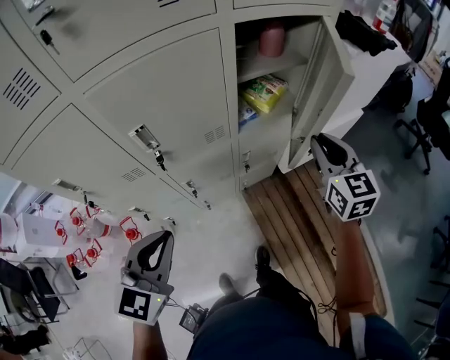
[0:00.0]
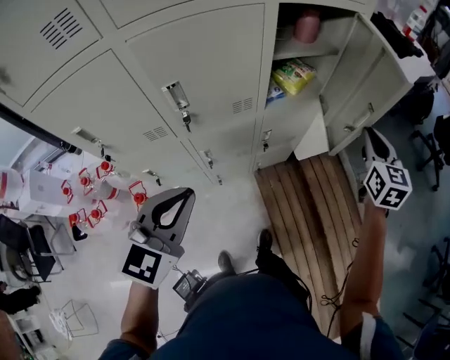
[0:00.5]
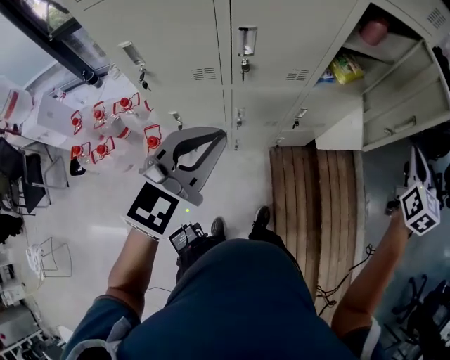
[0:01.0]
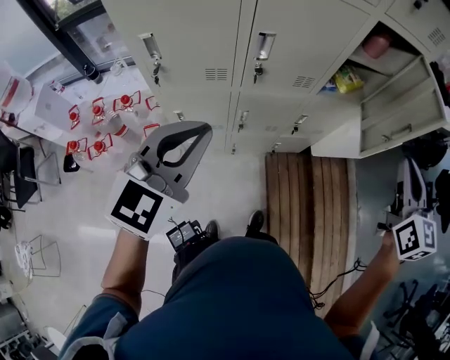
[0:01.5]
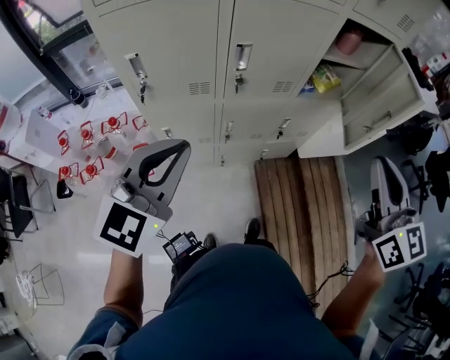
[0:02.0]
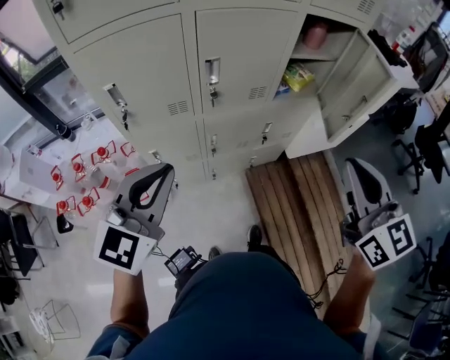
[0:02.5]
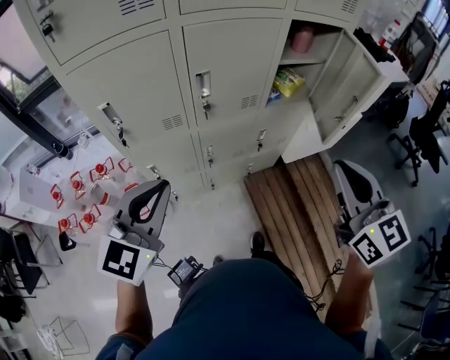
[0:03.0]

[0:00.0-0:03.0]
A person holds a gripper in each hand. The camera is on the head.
0:00.0 to 0:01.5: The right gripper is displaced backward and upward by about 20 cm. Meanwhile the left gripper heads to the left, backward and upward, covering approximately 15 cm.
0:01.5 to 0:03.0: The right gripper heads backward and to the left, covering about 15 cm.

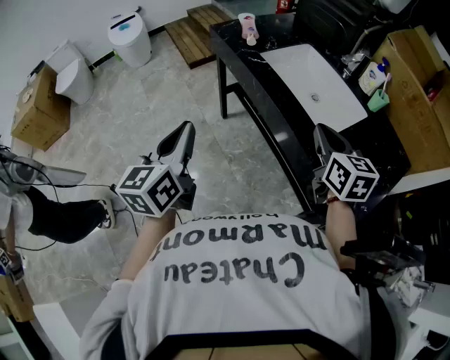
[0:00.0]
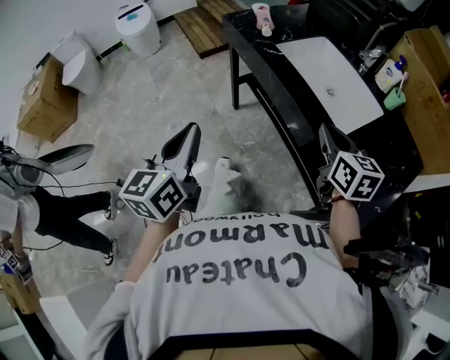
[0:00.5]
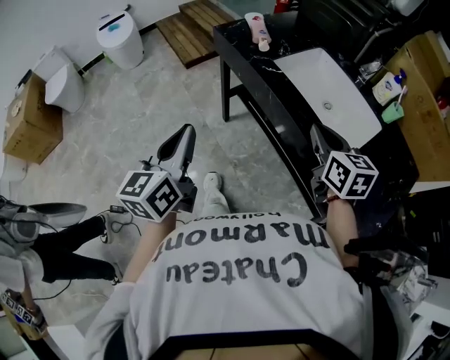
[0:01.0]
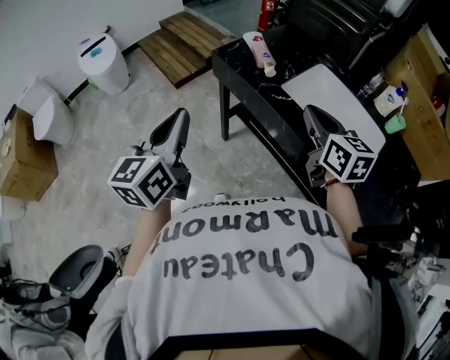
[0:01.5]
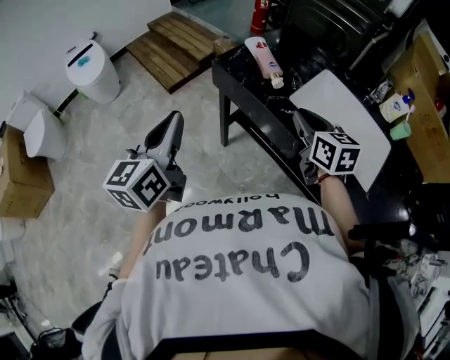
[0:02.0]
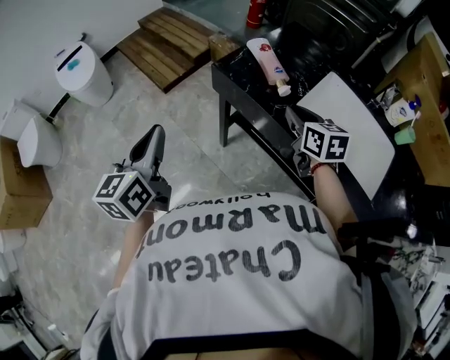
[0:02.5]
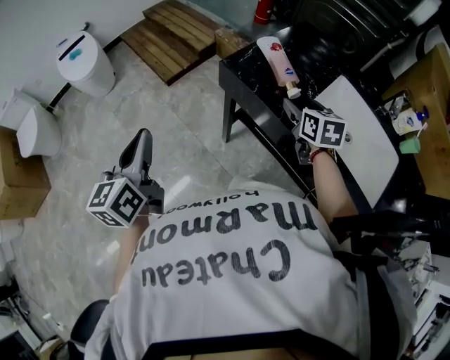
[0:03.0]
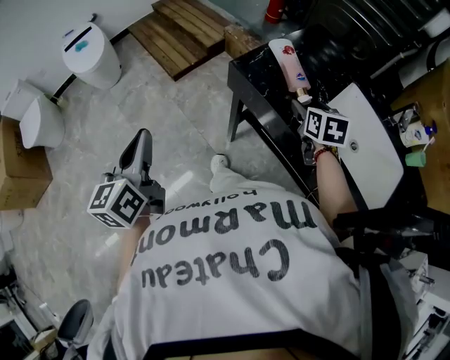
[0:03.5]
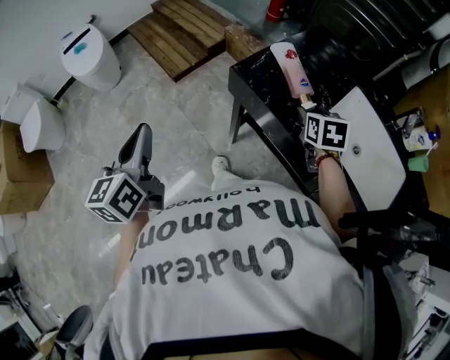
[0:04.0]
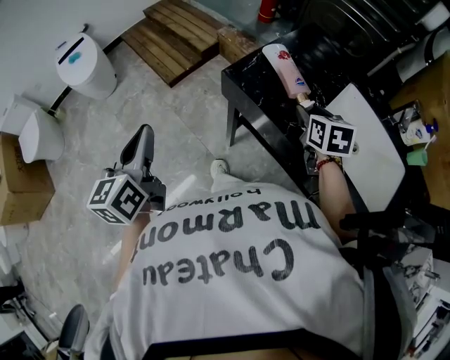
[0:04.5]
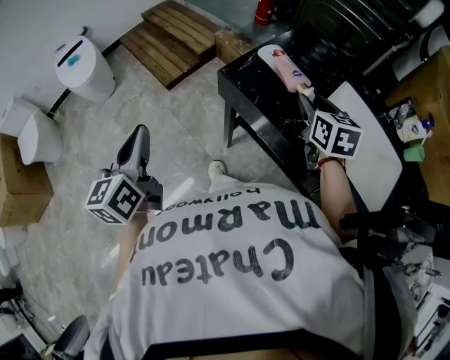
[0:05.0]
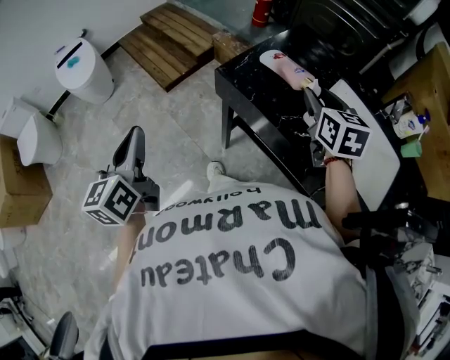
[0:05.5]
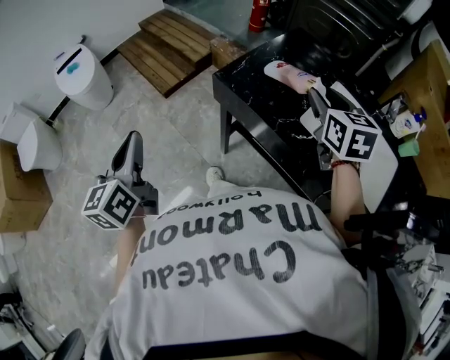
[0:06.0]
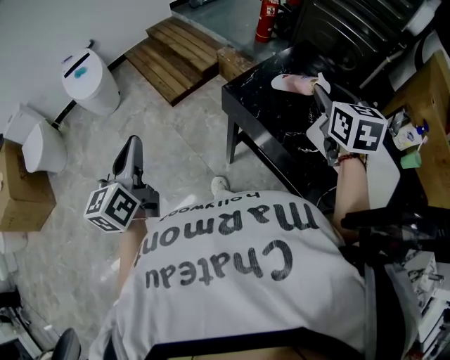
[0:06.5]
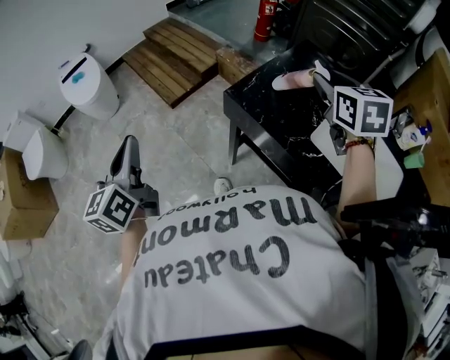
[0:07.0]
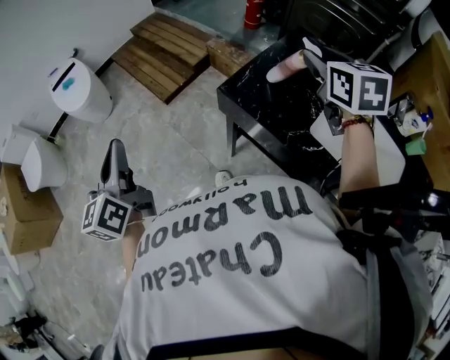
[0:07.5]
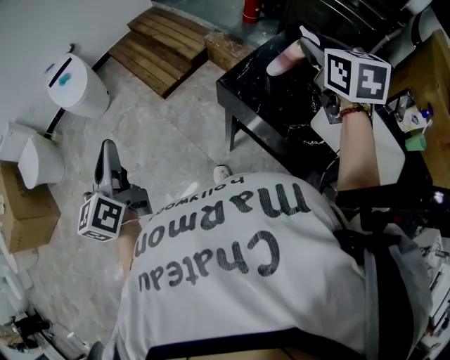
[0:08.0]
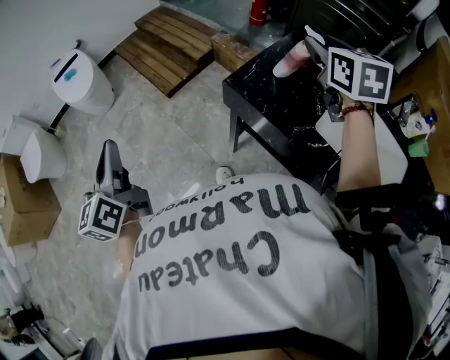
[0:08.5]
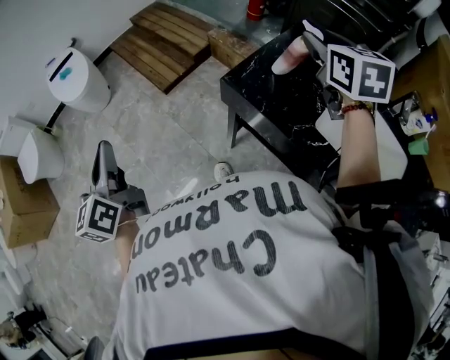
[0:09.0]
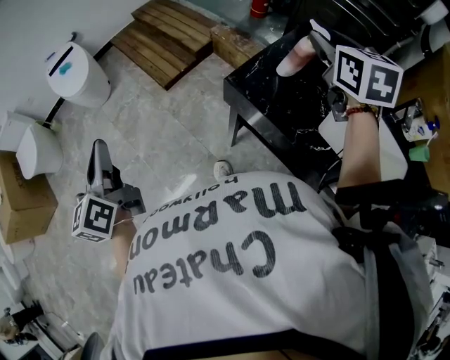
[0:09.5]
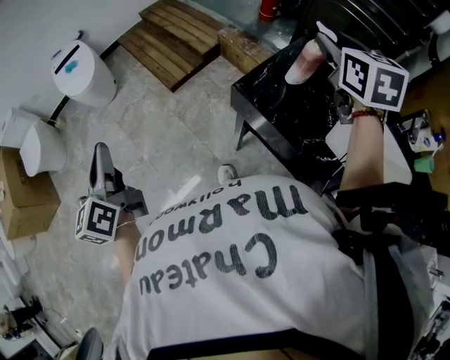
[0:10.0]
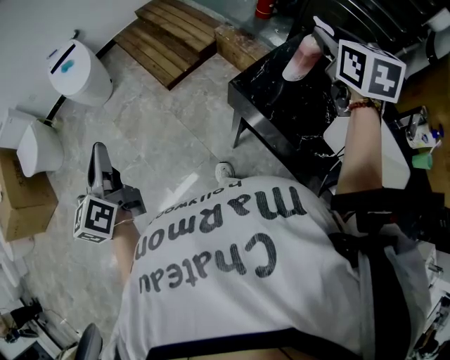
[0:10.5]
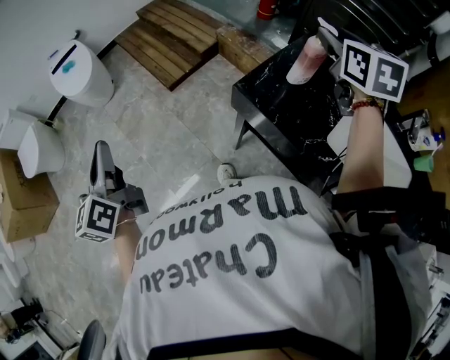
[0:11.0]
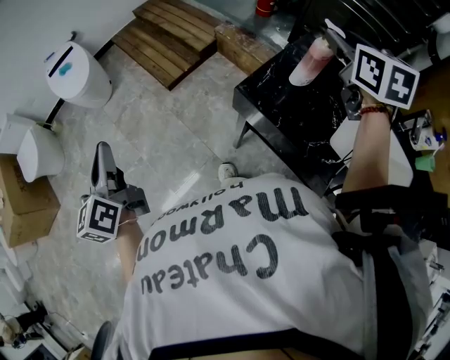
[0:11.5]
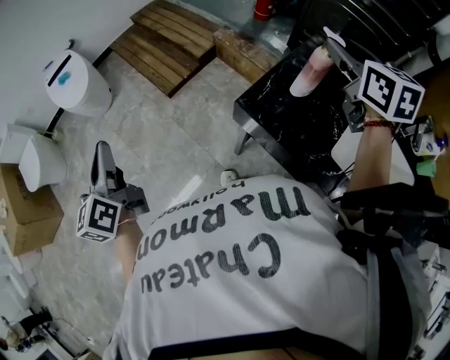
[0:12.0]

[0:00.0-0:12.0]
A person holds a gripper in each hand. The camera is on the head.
0:00.0 to 0:02.0: The grippers both shift forward and to the left by about 35 cm.
0:02.0 to 0:04.0: The left gripper travels to the left, forward and downward by approximately 15 cm, while the right gripper moves forward and downward, roughly 20 cm, swivels about 30 degrees, and opens its fingers.
0:04.0 to 0:06.0: The right gripper goes approximately 15 cm upward, and rotates about 20 degrees.
0:06.0 to 0:08.0: The left gripper heads to the left and forward, covering roughly 10 cm, while the right gripper shifts some 15 cm forward and upward.
0:08.0 to 0:10.0: The grippers stay close to where they were, moving slightly.
0:10.0 to 0:12.0: The left gripper goes approximately 10 cm forward.

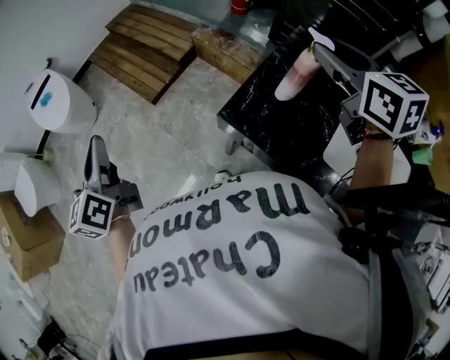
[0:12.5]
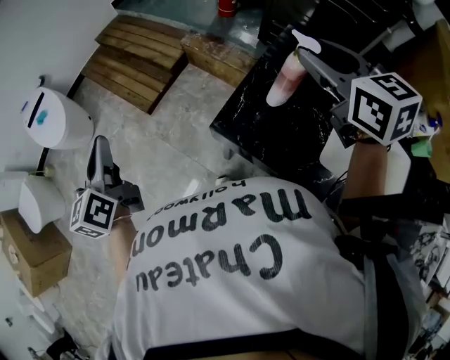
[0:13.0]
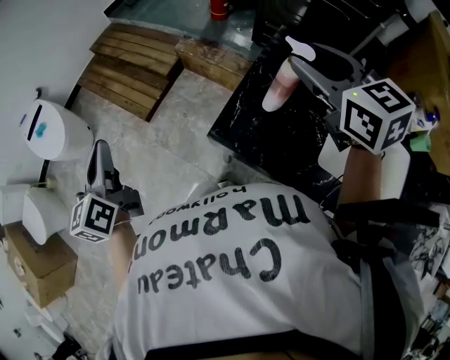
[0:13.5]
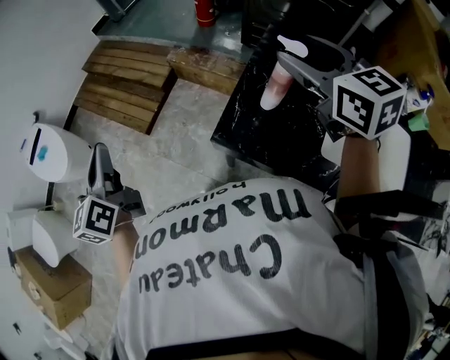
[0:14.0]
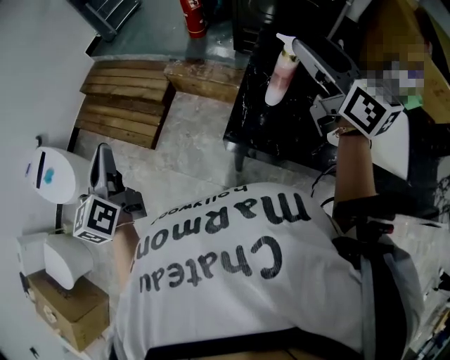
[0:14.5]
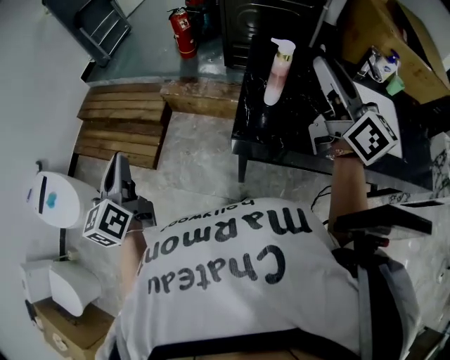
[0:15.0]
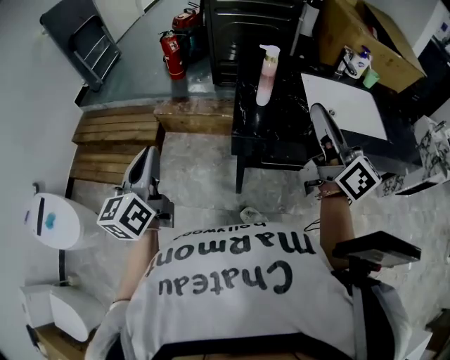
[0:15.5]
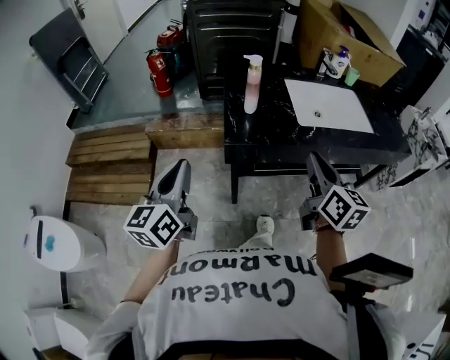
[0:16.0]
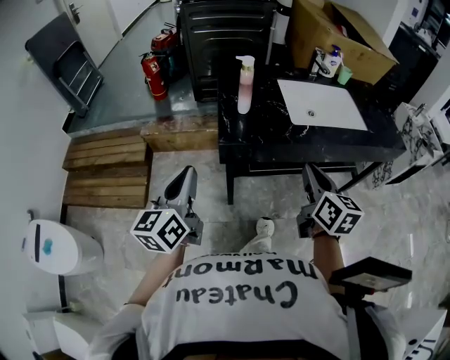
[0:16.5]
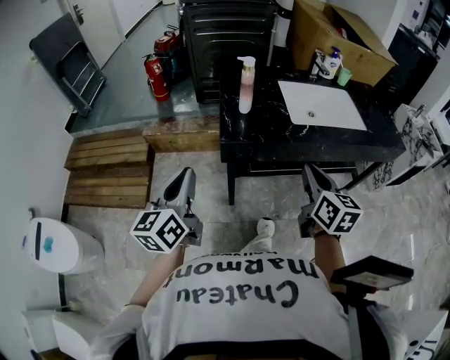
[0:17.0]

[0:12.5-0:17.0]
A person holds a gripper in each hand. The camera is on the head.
0:12.5 to 0:14.5: The right gripper swivels some 30 degrees, and opens its fingers; the left gripper travels forward by roughly 10 cm, and changes its angle by roughly 20 degrees.
0:14.5 to 0:17.0: The left gripper moves approximately 15 cm, and changes its angle by roughly 40 degrees, while the right gripper moves roughly 35 cm, rotates some 50 degrees, and closes.

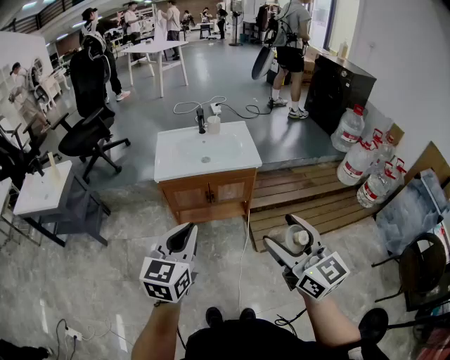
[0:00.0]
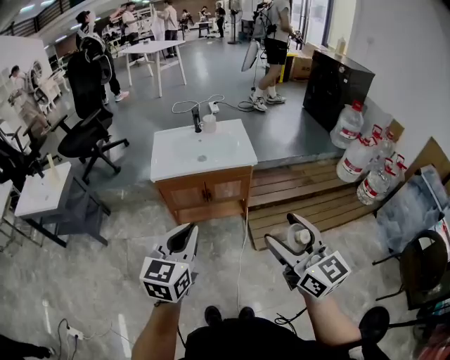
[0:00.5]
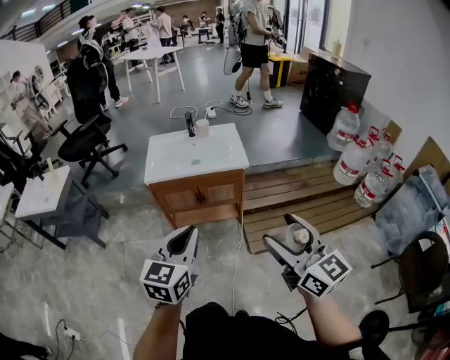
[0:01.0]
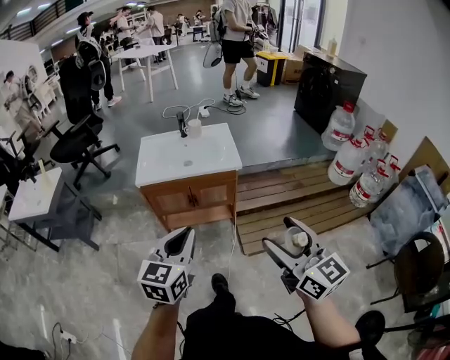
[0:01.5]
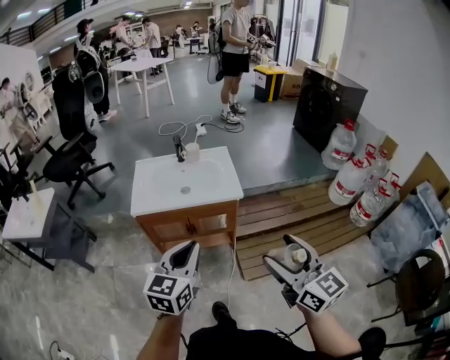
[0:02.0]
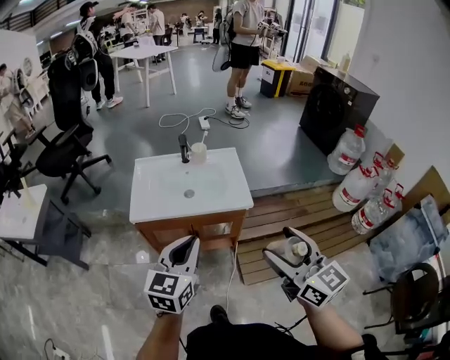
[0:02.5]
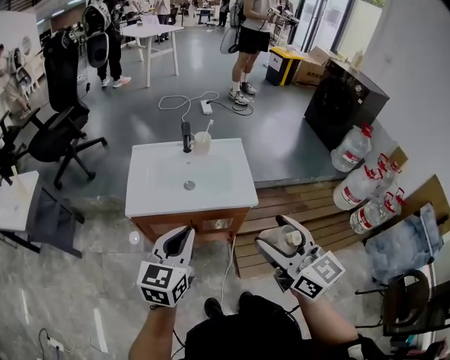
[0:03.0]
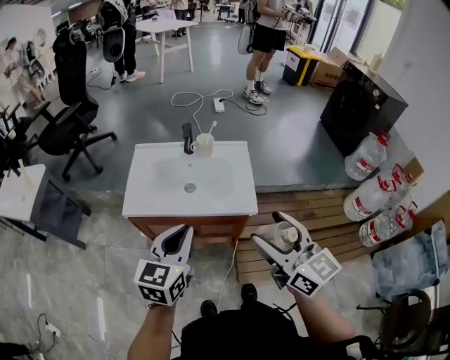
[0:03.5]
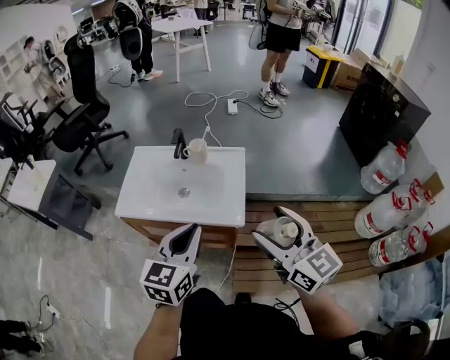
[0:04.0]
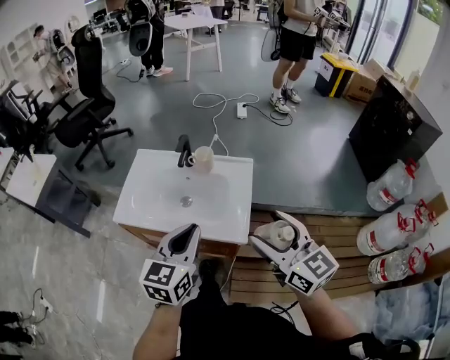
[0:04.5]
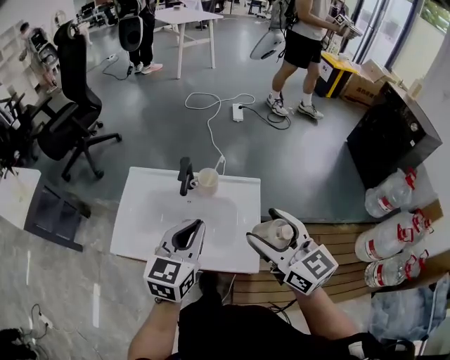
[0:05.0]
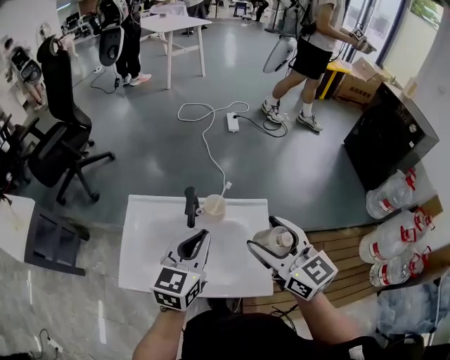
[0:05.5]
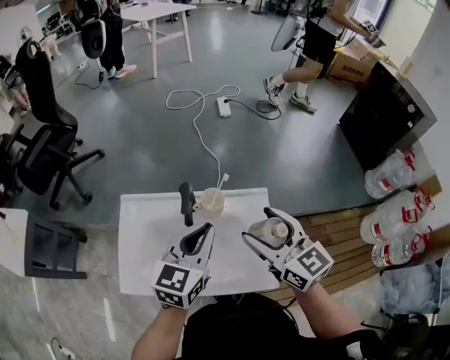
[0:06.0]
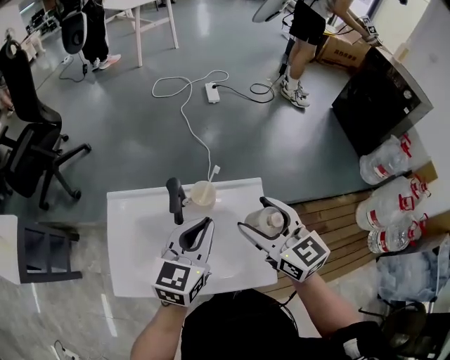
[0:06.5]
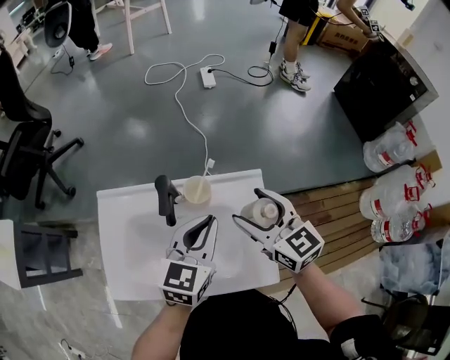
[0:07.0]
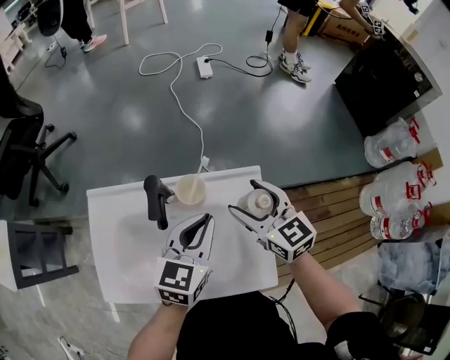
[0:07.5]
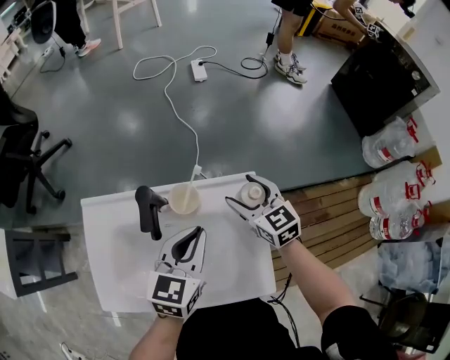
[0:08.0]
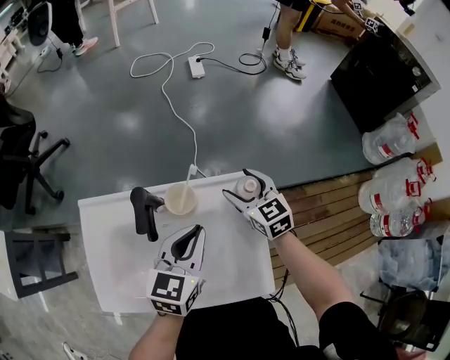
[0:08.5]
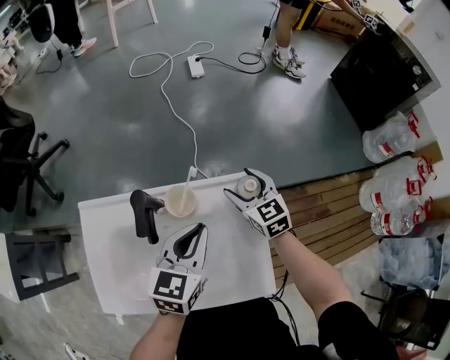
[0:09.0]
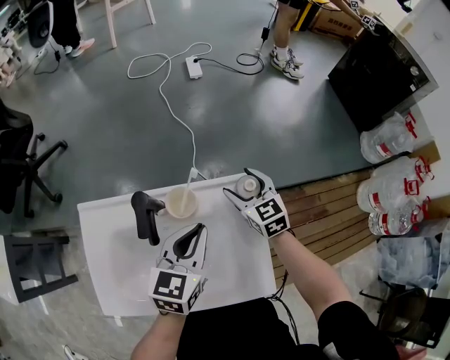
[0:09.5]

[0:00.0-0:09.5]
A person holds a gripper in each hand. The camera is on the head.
0:00.0 to 0:02.0: The left gripper heads forward and to the right, covering some 15 cm. Meanwhile the right gripper goes about 15 cm to the right and forward.
0:02.0 to 0:04.0: The left gripper goes approximately 30 cm forward and to the right; the right gripper shifts some 35 cm forward.
0:04.0 to 0:05.5: Both grippers move forward, approximately 30 cm.
0:05.5 to 0:07.5: The right gripper goes about 20 cm downward and forward. The left gripper shifts some 15 cm downward, forward and to the right.
0:07.5 to 0:09.5: The right gripper heads downward and forward, covering approximately 15 cm.
